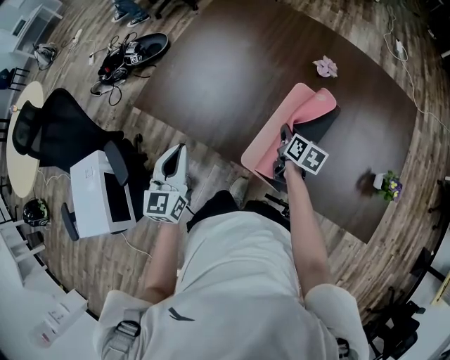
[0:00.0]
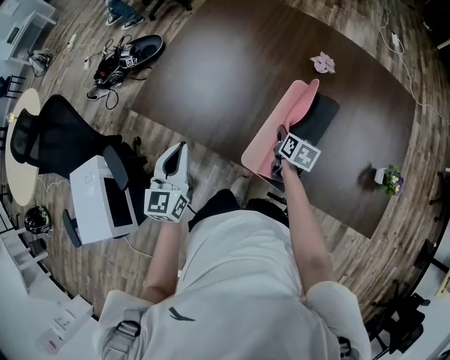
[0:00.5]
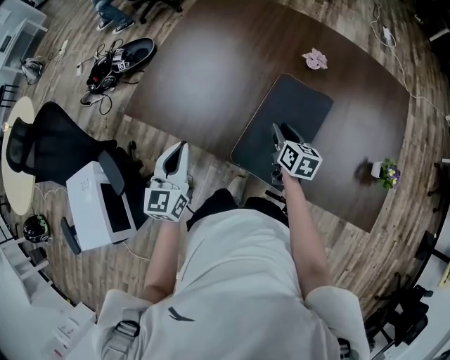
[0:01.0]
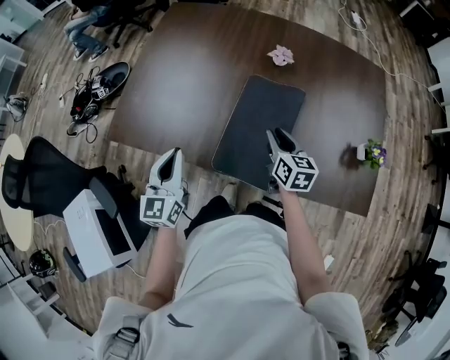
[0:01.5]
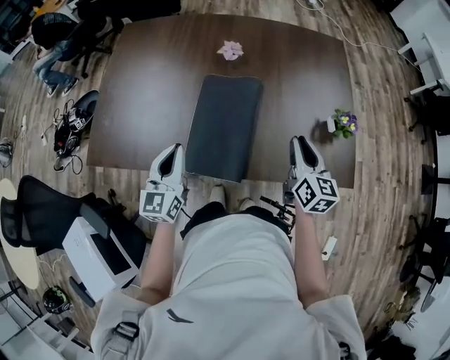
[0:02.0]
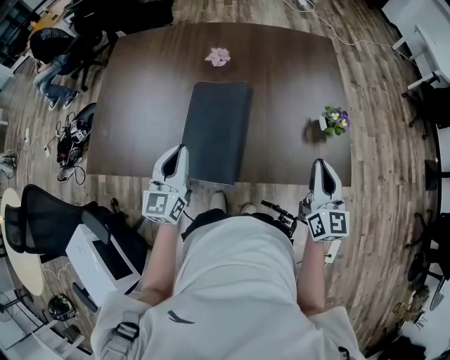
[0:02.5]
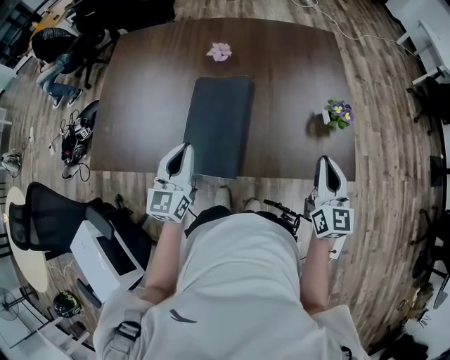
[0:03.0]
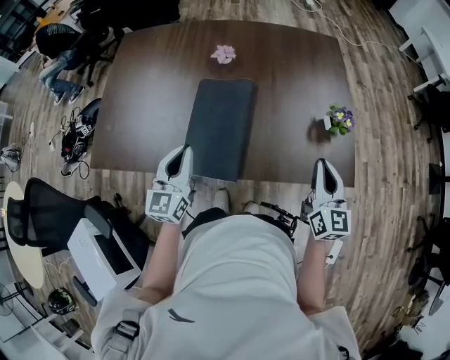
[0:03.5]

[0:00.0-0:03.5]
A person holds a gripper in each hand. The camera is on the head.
0:00.0 to 0:02.0: The left gripper moves roughly 20 cm, and turns by about 30 degrees. The right gripper shifts by approximately 30 cm, and changes its angle by roughly 40 degrees.
0:02.0 to 0:03.5: The right gripper shifts roughly 10 cm to the right and backward. The left gripper goes some 5 cm to the right.

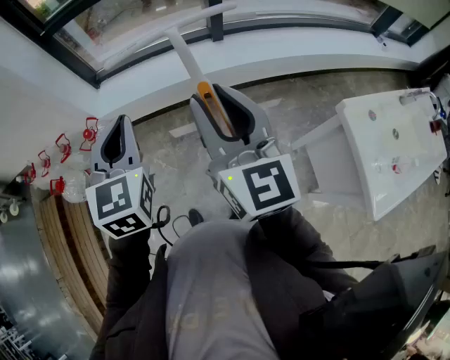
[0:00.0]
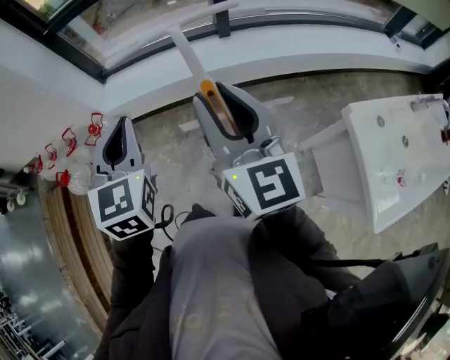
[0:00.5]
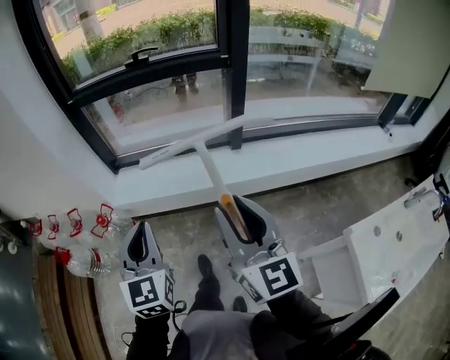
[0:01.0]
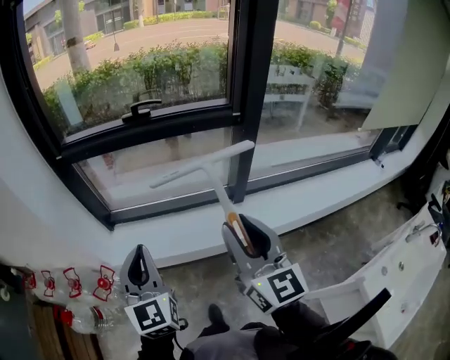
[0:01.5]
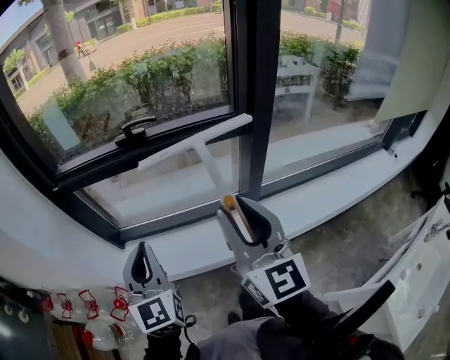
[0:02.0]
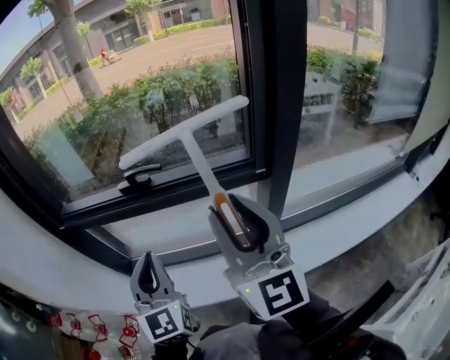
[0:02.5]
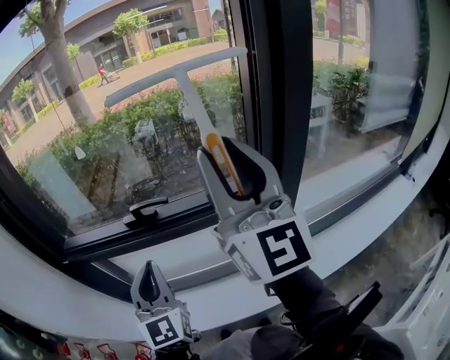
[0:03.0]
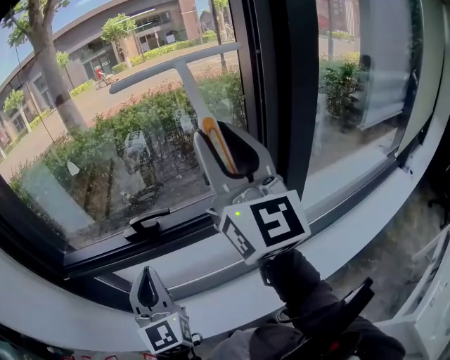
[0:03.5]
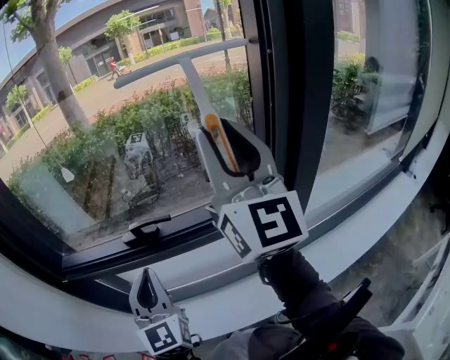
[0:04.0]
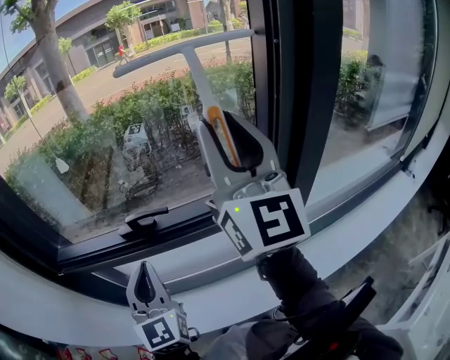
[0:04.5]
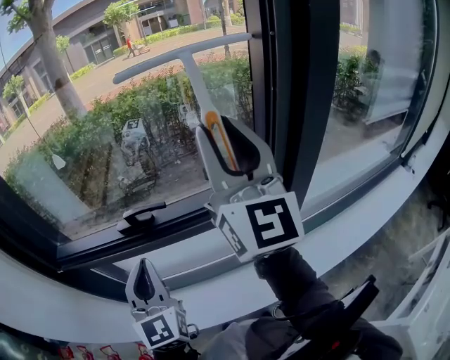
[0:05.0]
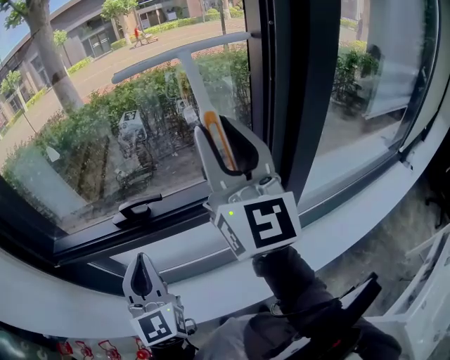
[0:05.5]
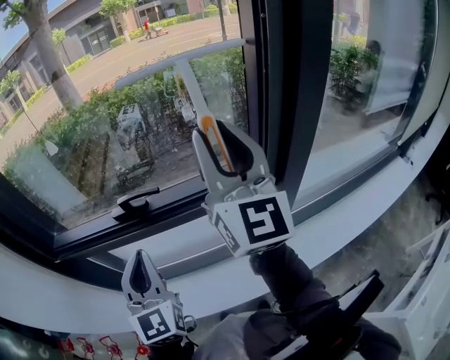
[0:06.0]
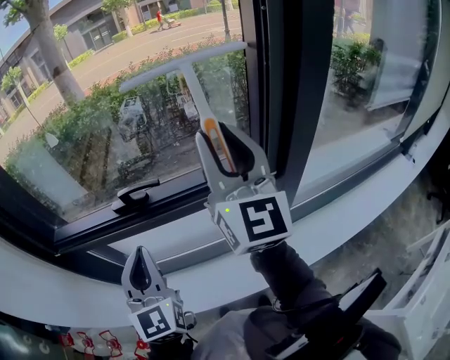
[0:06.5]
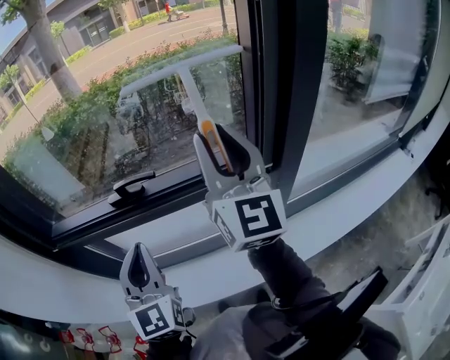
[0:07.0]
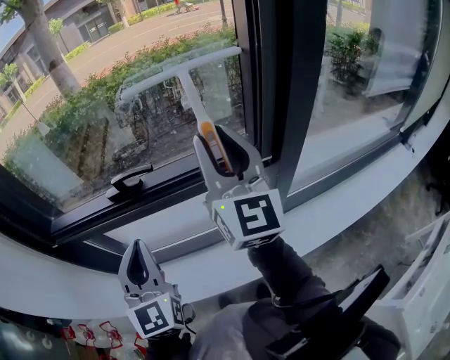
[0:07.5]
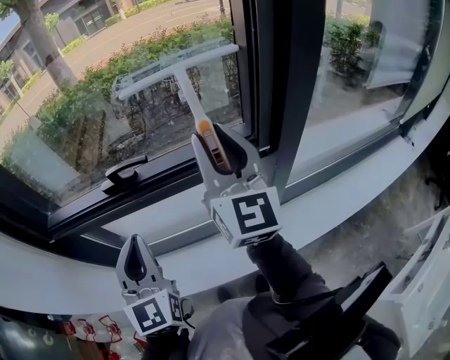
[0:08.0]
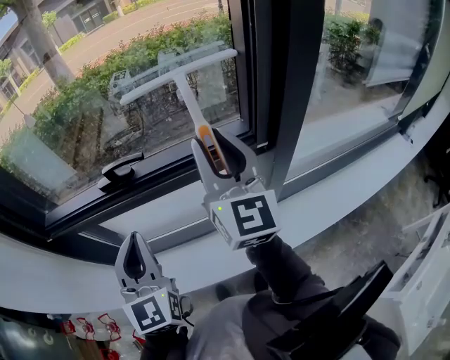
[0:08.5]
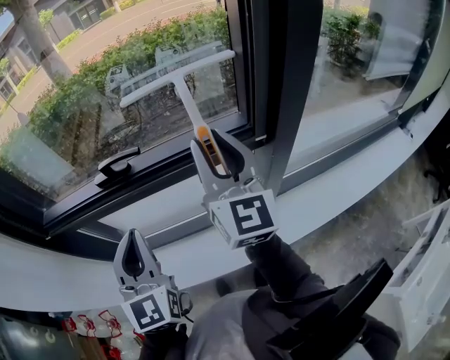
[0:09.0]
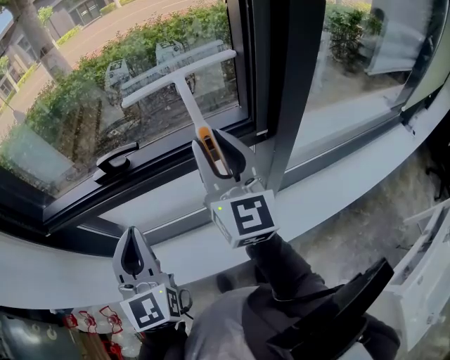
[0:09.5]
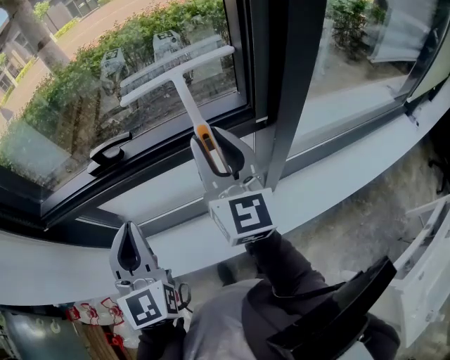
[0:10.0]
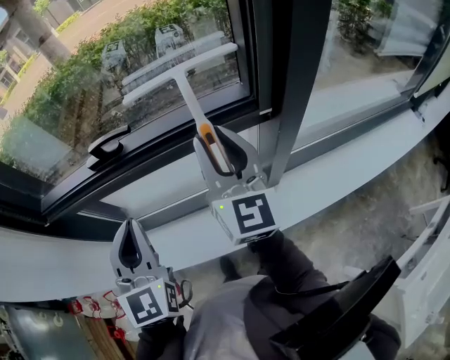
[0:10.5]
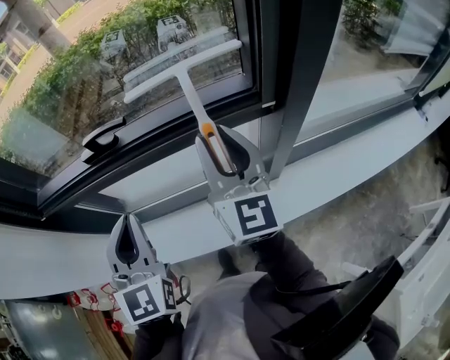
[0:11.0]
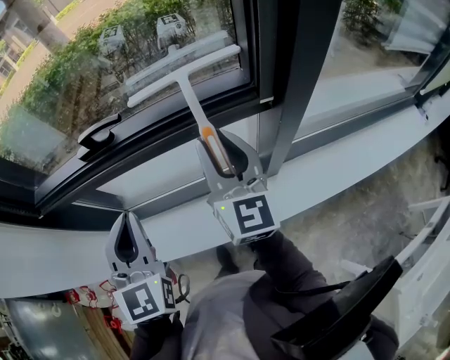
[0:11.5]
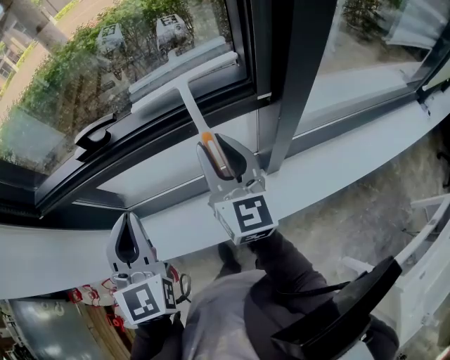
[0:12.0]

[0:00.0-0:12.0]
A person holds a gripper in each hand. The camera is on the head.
0:00.0 to 0:02.0: Both grippers are carried forward, some 40 cm.
0:02.0 to 0:04.0: The right gripper heads forward and upward, covering some 40 cm, and swivels roughly 20 degrees. The left gripper is displaced forward by about 25 cm.
0:04.0 to 0:06.0: The right gripper goes some 5 cm downward.
0:06.0 to 0:08.0: The right gripper goes approximately 10 cm downward.
0:08.0 to 0:10.0: The right gripper travels downward by some 10 cm.
0:10.0 to 0:12.0: The right gripper goes approximately 10 cm downward.

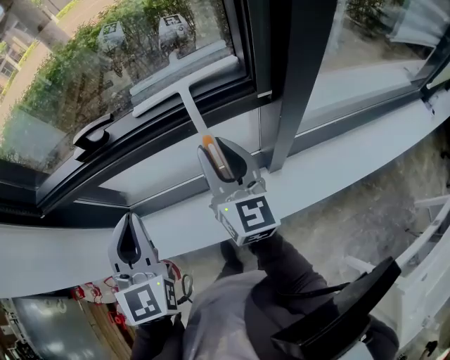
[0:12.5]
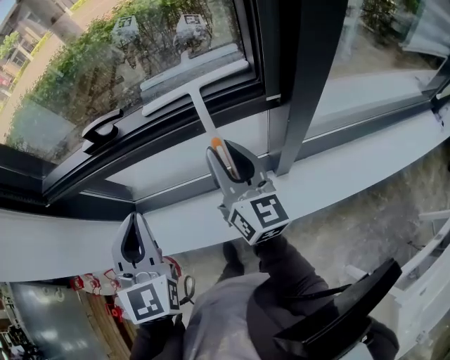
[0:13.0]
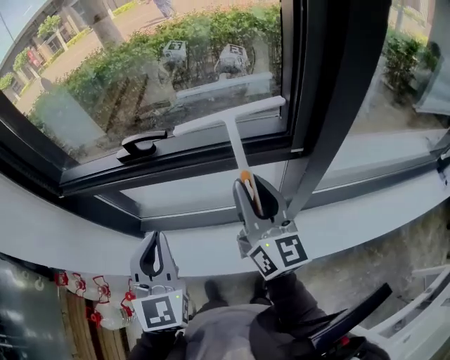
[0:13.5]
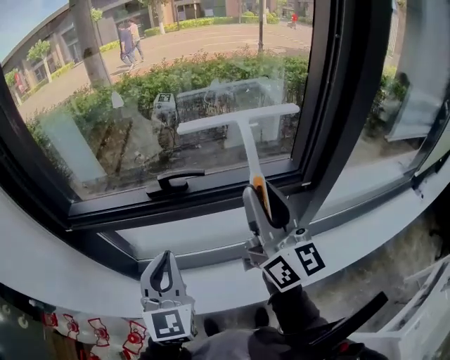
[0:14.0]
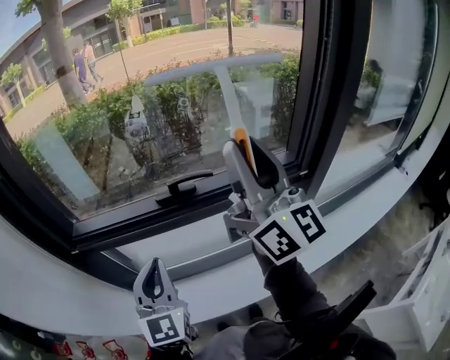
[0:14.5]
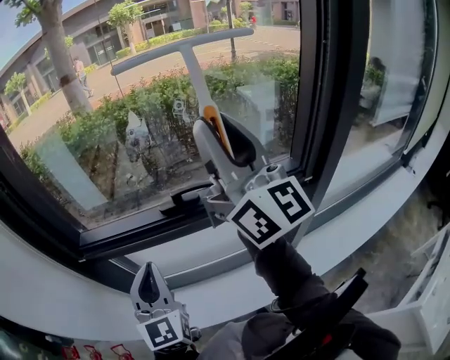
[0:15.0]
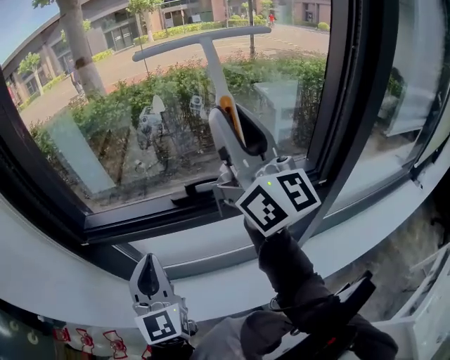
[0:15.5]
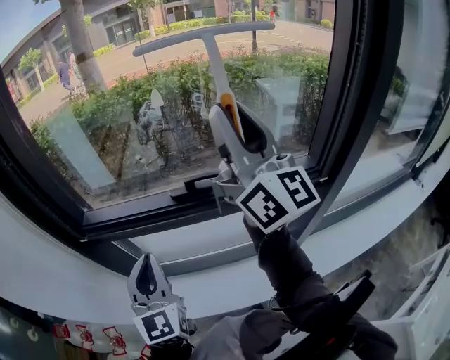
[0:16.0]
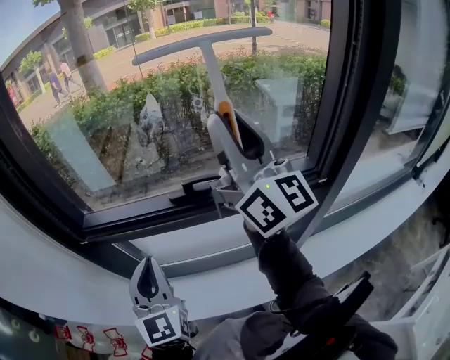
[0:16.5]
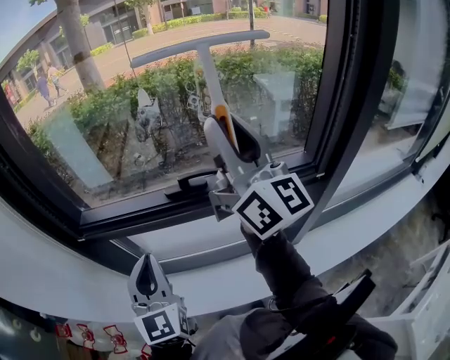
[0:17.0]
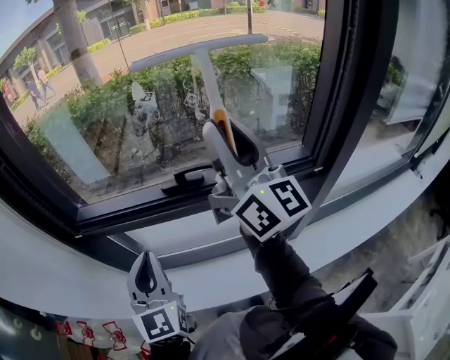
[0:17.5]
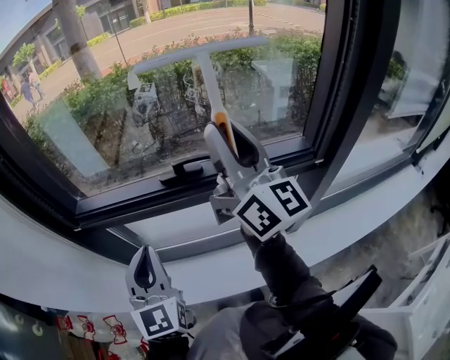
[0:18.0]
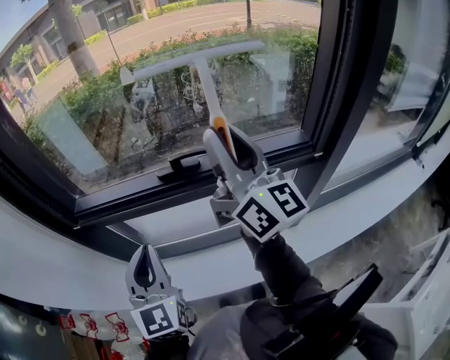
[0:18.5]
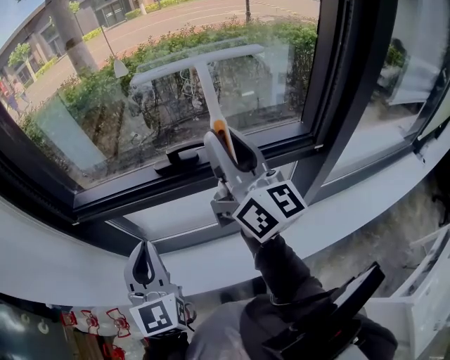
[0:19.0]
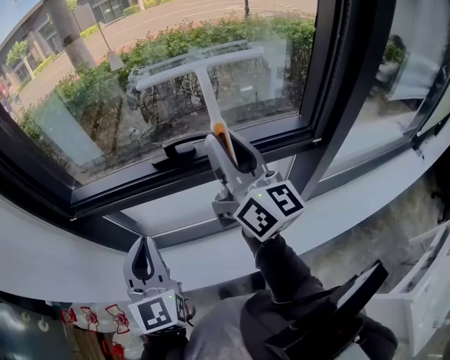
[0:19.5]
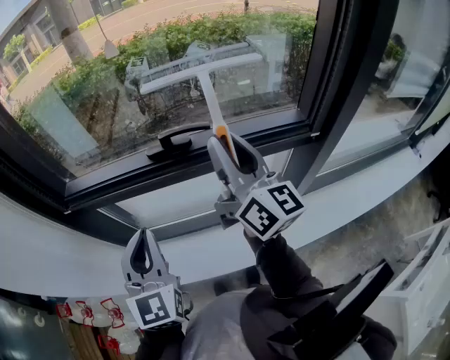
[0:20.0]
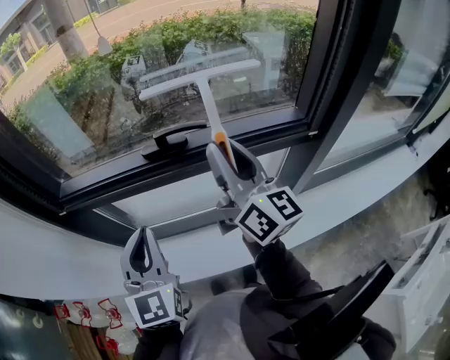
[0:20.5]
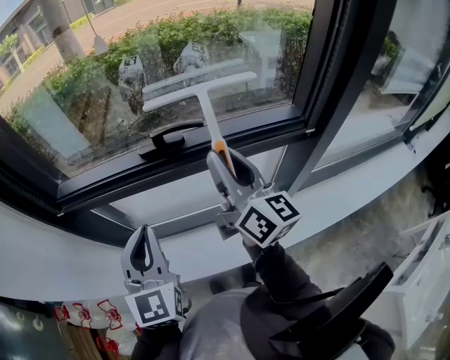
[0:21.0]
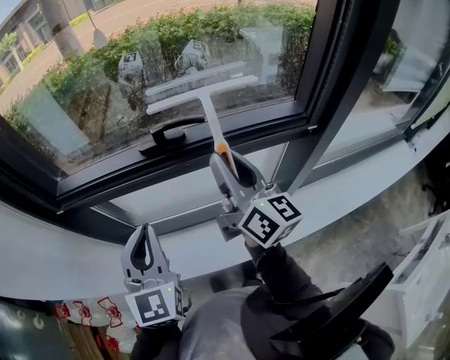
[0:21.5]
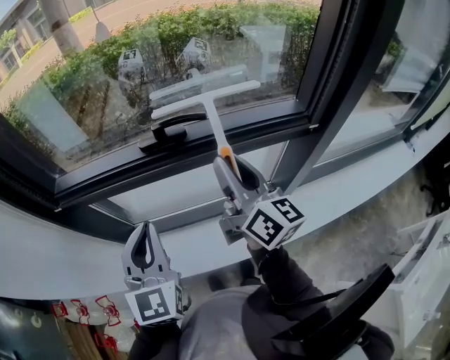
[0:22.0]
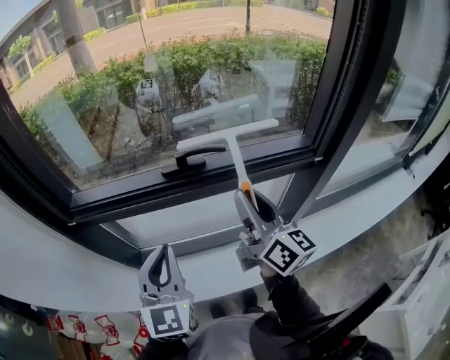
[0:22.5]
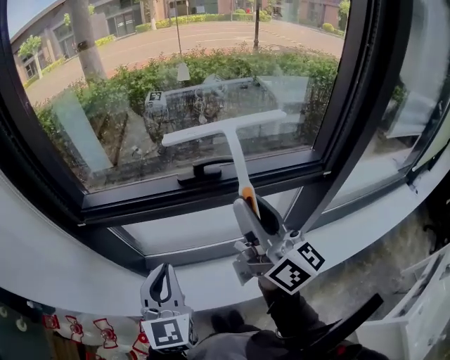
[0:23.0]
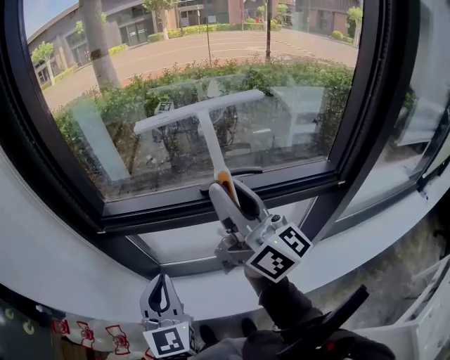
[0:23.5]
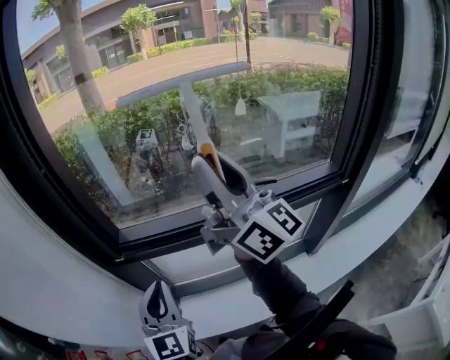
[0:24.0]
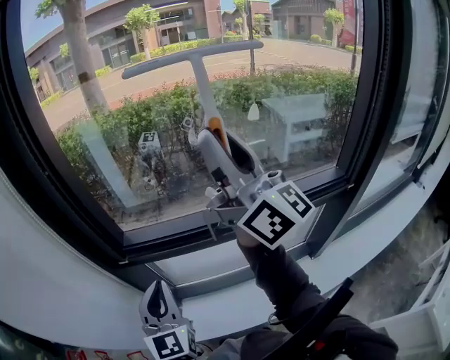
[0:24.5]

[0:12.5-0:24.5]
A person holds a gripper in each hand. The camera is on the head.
0:12.5 to 0:14.5: The right gripper moves upward and to the left, some 30 cm, and changes its angle by some 30 degrees. The left gripper travels to the left by approximately 15 cm.
0:14.5 to 0:16.5: The right gripper travels forward by some 5 cm.
0:16.5 to 0:18.5: The right gripper travels downward by roughly 10 cm.
0:18.5 to 0:20.5: The right gripper shifts about 10 cm downward.
0:20.5 to 0:22.5: The right gripper moves downward, roughly 5 cm.
0:22.5 to 0:24.5: The right gripper moves upward and to the left, some 35 cm, and swivels approximately 30 degrees; the left gripper goes some 20 cm to the left.
